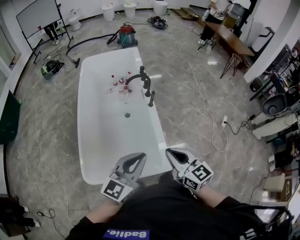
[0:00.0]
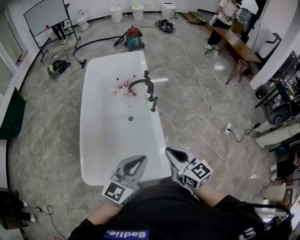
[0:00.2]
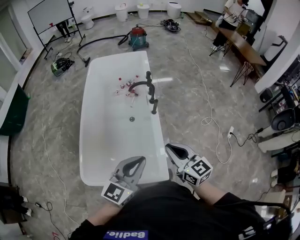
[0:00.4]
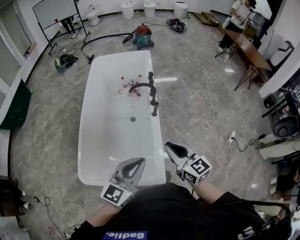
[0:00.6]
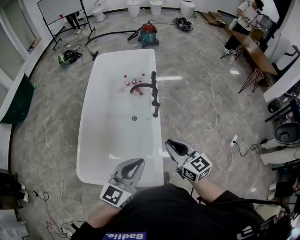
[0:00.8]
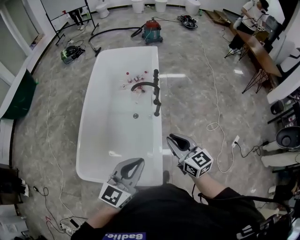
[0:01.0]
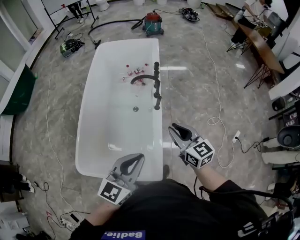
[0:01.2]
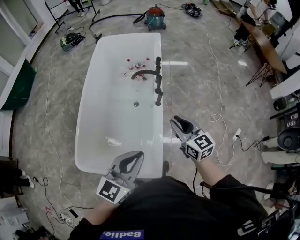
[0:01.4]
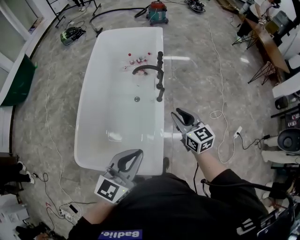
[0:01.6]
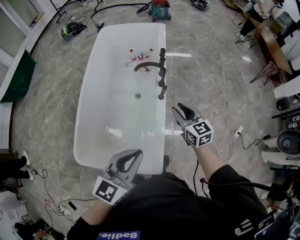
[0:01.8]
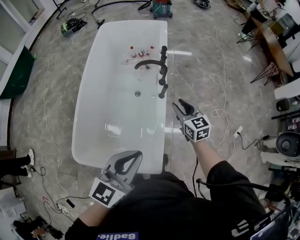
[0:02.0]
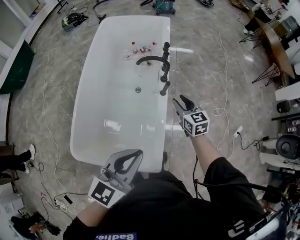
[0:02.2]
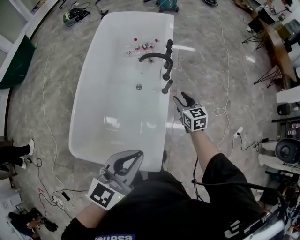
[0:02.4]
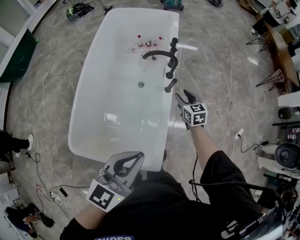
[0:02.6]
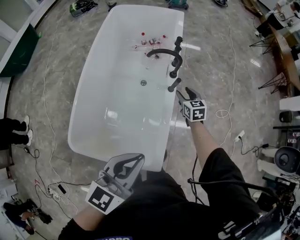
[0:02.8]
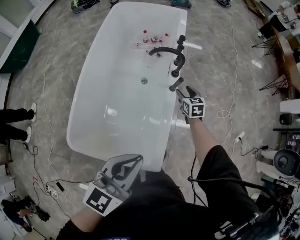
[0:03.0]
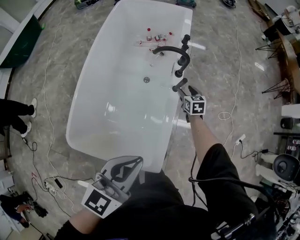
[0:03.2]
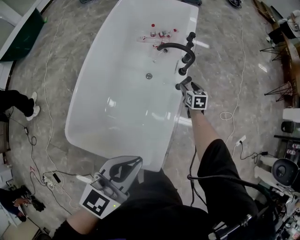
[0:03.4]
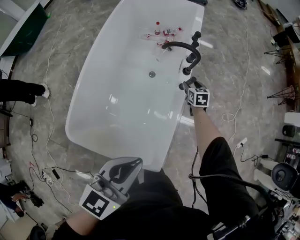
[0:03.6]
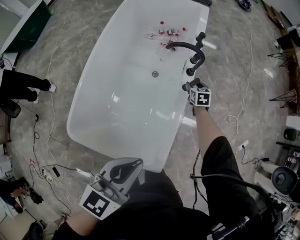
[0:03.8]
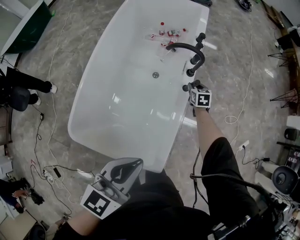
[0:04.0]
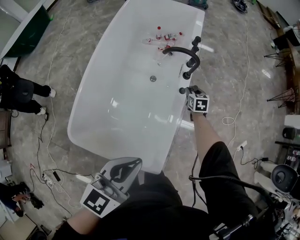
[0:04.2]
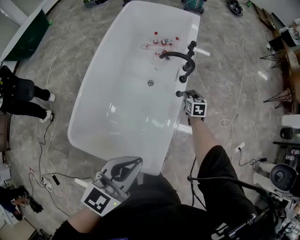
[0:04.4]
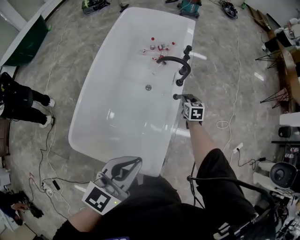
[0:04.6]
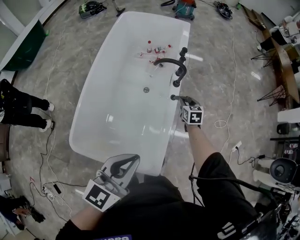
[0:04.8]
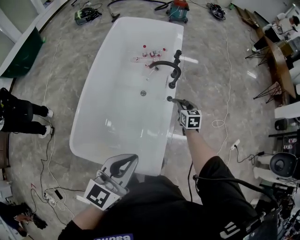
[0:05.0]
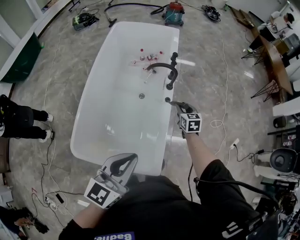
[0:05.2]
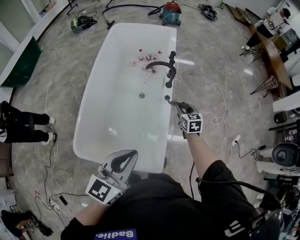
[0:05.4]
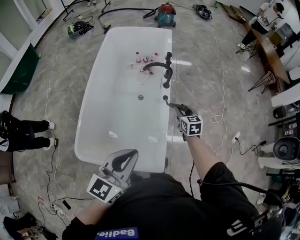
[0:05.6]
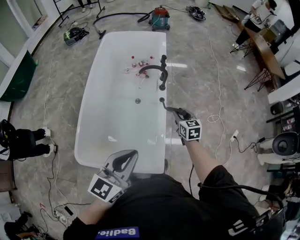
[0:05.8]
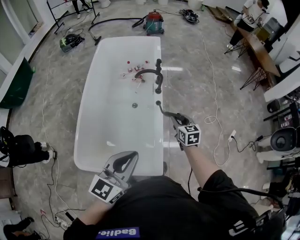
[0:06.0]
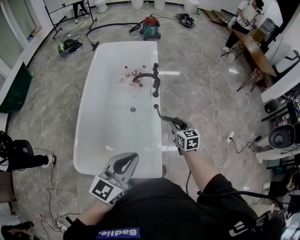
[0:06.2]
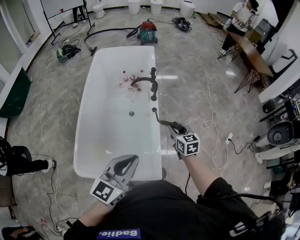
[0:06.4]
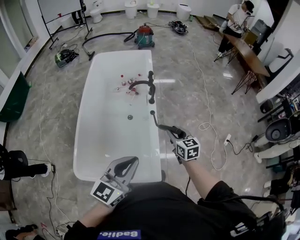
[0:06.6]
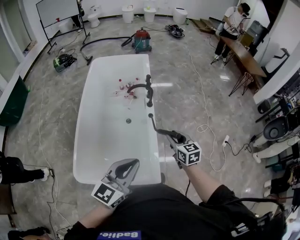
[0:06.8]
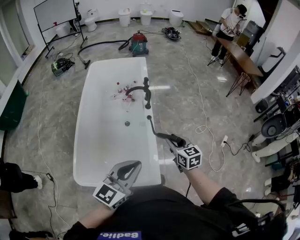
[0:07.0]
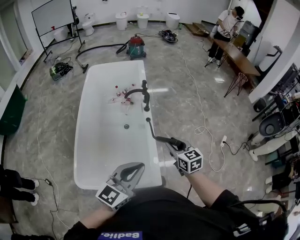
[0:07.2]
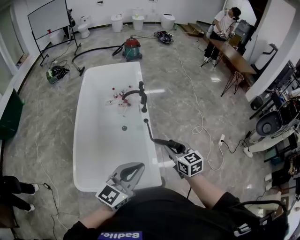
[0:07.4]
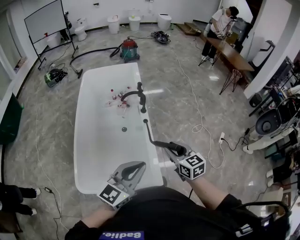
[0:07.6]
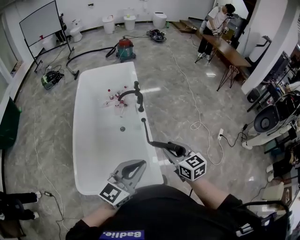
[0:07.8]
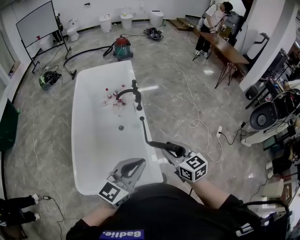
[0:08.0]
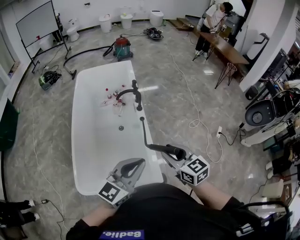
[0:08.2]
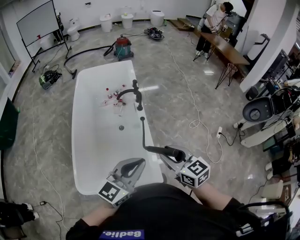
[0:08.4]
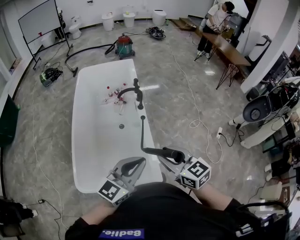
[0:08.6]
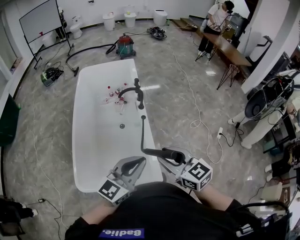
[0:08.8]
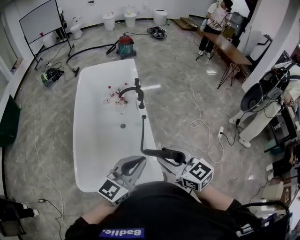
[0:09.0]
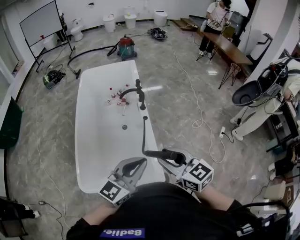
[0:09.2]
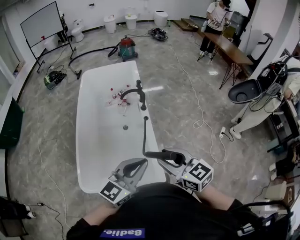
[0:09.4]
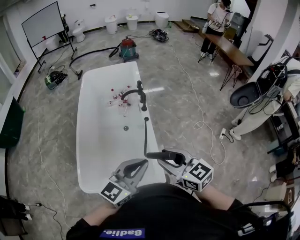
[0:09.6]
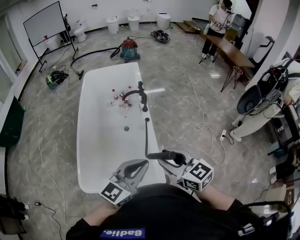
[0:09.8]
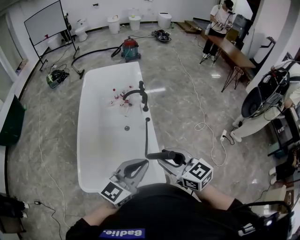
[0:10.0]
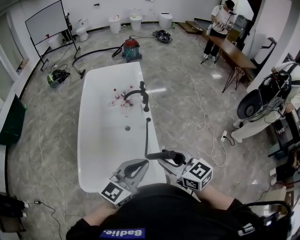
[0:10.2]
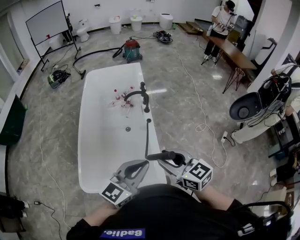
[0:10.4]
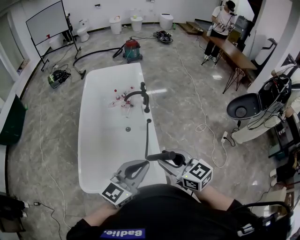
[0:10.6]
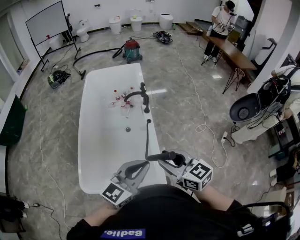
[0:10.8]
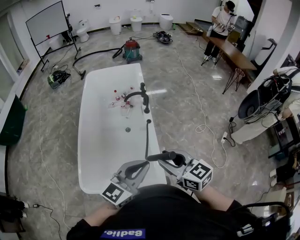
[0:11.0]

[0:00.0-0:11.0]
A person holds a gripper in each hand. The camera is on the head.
0:00.0 to 0:01.6: The right gripper heads forward and to the right, covering roughly 30 cm. The left gripper heads forward and to the right, covering roughly 15 cm.
0:01.6 to 0:03.2: The left gripper shifts approximately 5 cm downward, while the right gripper heads downward and forward, covering approximately 35 cm, turns by some 20 degrees, and opens its fingers.
0:03.2 to 0:04.8: The right gripper shifts some 5 cm upward.
0:04.8 to 0:06.2: The left gripper goes some 10 cm backward and upward. The right gripper is displaced backward and upward by about 25 cm.
0:06.2 to 0:07.8: The left gripper ends up about 5 cm from where it was. The right gripper travels backward and upward by about 20 cm.
0:07.8 to 0:09.4: The right gripper is displaced backward and upward by some 10 cm.
0:09.4 to 0:11.0: The grippers move only a little.

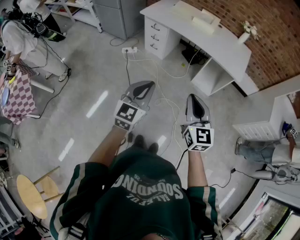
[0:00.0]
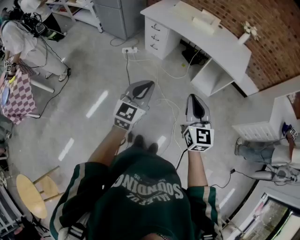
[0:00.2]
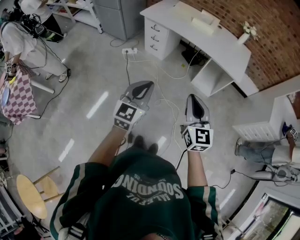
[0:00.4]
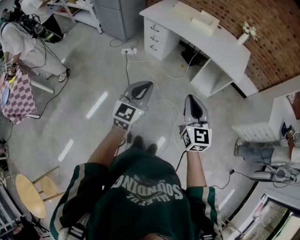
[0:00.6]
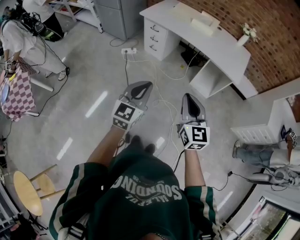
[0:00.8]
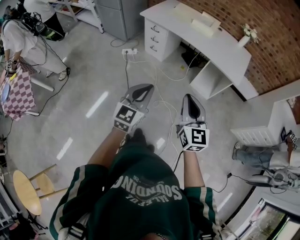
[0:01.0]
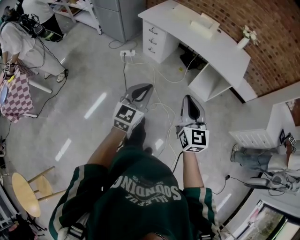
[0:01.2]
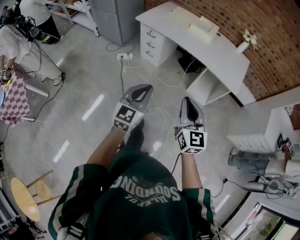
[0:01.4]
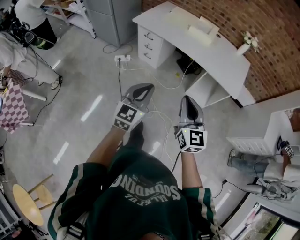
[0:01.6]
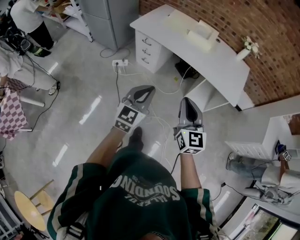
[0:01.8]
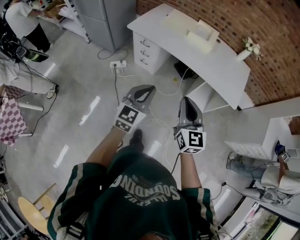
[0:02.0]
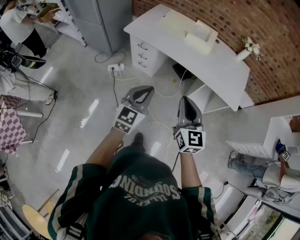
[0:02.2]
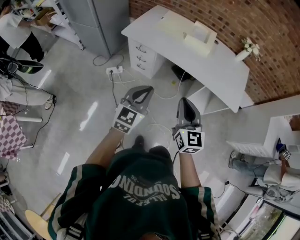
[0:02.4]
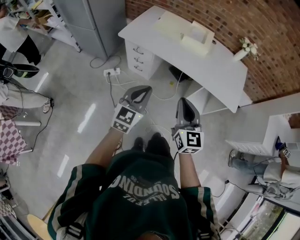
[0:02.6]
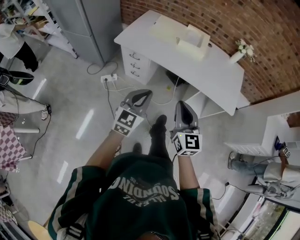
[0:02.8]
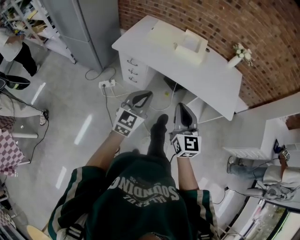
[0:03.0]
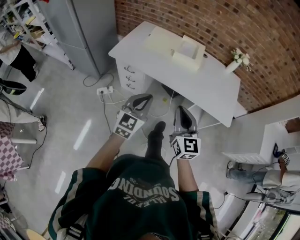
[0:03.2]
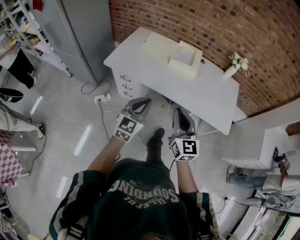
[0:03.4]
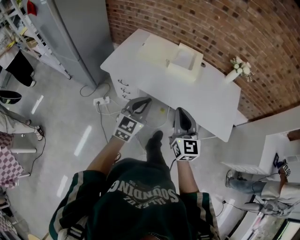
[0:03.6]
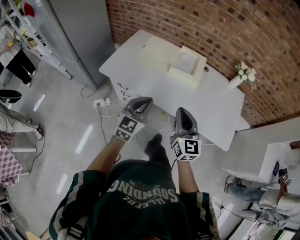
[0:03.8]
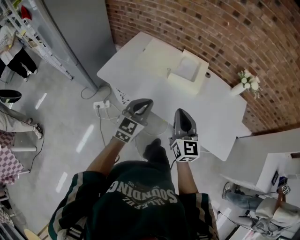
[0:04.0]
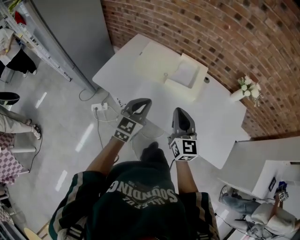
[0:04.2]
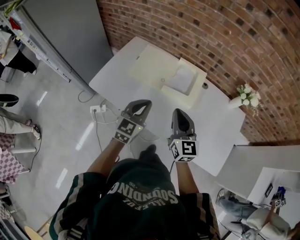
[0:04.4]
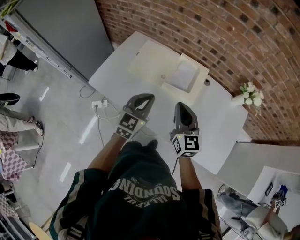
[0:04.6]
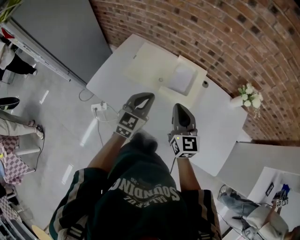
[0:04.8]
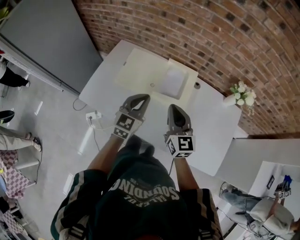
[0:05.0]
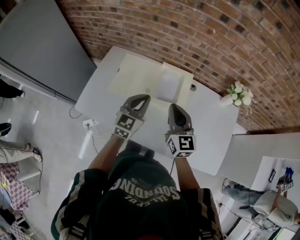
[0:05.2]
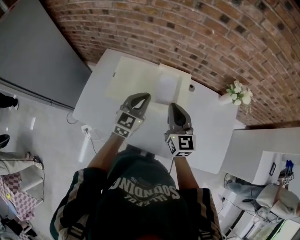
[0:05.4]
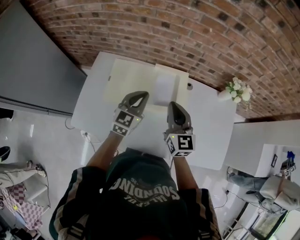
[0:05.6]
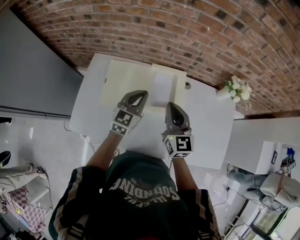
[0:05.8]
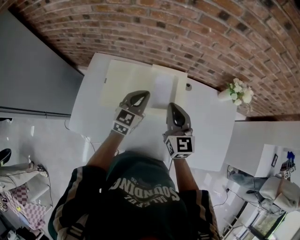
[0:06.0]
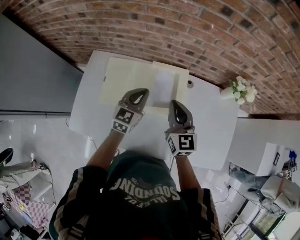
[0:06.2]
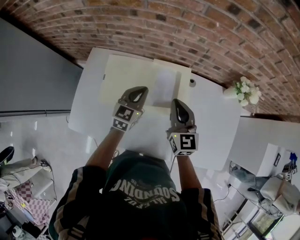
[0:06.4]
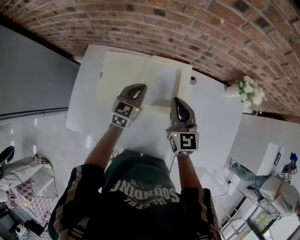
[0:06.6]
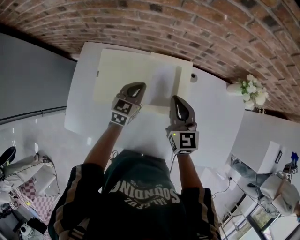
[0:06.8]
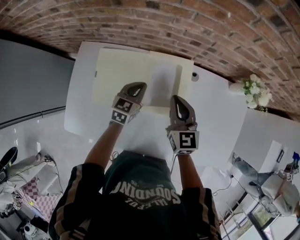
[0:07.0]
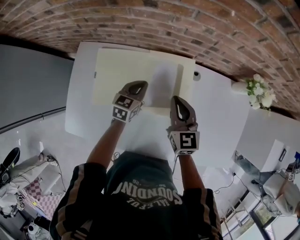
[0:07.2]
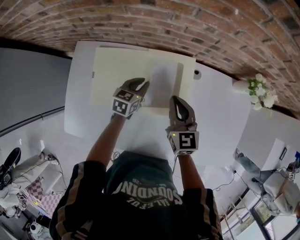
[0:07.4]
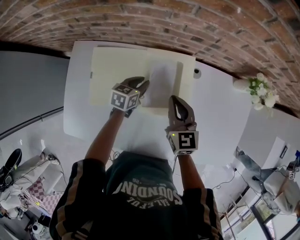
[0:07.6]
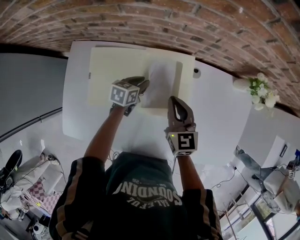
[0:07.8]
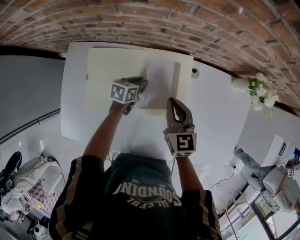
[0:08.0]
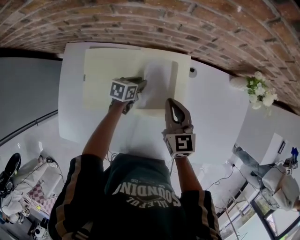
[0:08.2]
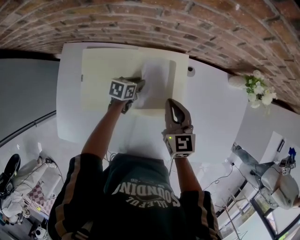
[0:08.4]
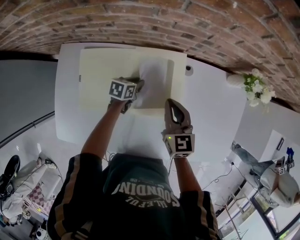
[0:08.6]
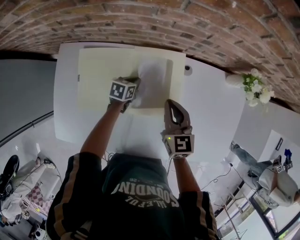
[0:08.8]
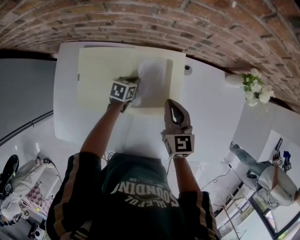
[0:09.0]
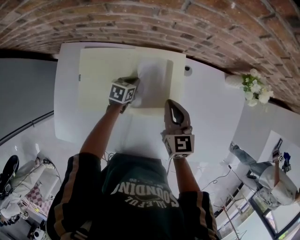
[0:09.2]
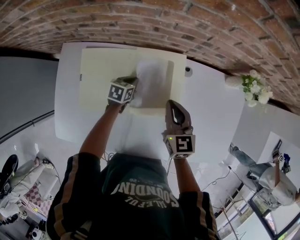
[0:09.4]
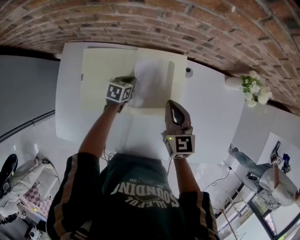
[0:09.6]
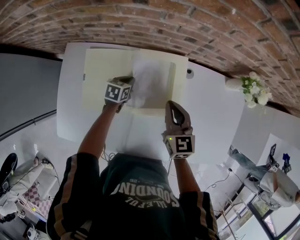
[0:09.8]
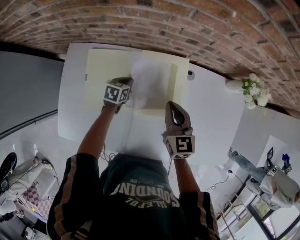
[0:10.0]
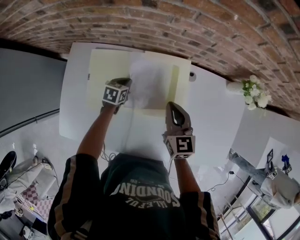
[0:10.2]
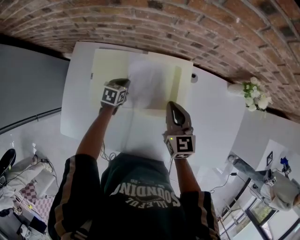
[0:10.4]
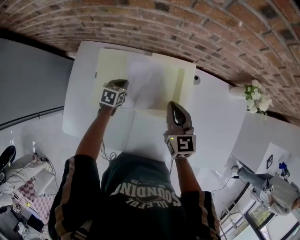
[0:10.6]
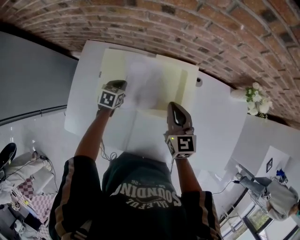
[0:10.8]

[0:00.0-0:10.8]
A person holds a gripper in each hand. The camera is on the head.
0:00.0 to 0:01.6: The two grippers go some 15 cm forward.
0:01.6 to 0:03.0: Both grippers move forward, about 25 cm.
0:03.0 to 0:04.6: The pair of grippers is taken forward, roughly 50 cm.
0:04.6 to 0:06.2: Both grippers travel together forward, some 20 cm.
0:06.2 to 0:07.8: The left gripper is displaced downward and forward by roughly 25 cm, turns by approximately 40 degrees, and opens its fingers. The right gripper moves downward and forward, about 15 cm.
0:07.8 to 0:09.2: The left gripper travels downward by about 5 cm, and closes up.
0:09.2 to 0:10.8: The right gripper shifts about 5 cm to the left. The left gripper is displaced to the left by some 15 cm.

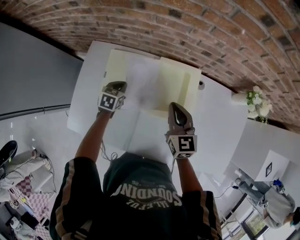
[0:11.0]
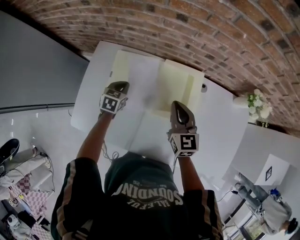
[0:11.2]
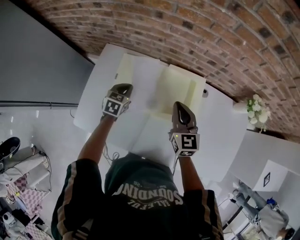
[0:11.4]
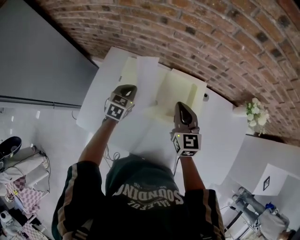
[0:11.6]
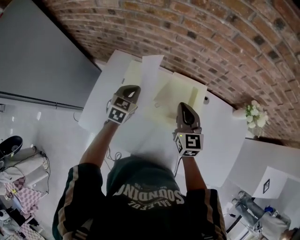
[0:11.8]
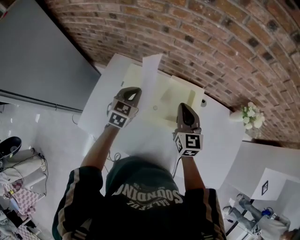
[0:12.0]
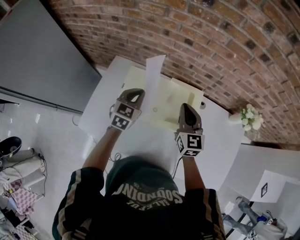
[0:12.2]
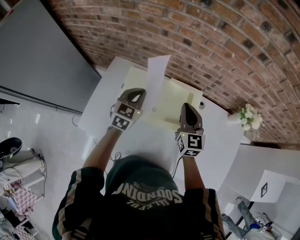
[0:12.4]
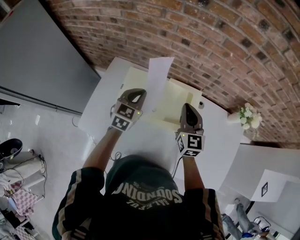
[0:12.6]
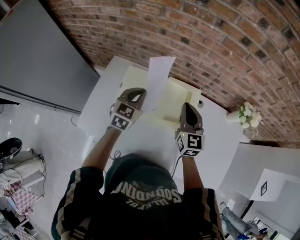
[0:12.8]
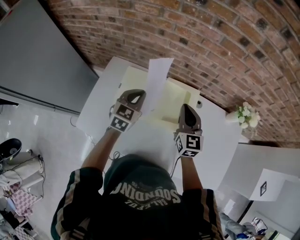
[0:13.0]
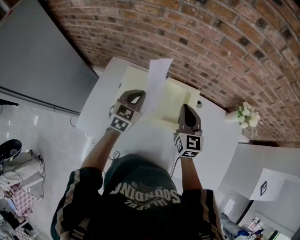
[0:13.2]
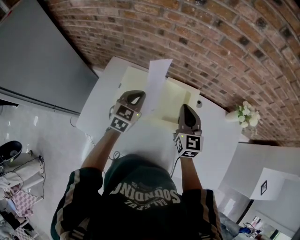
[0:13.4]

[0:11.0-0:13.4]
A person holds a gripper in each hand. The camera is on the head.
0:11.0 to 0:12.2: The right gripper travels upward by about 10 cm. Meanwhile the left gripper is displaced upward by approximately 20 cm, and changes its angle by some 30 degrees.
0:12.2 to 0:13.4: The grippers stay close to where they were, moving slightly.
